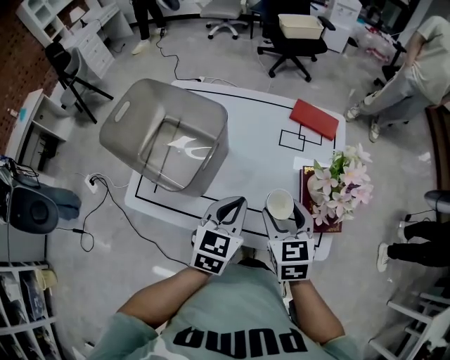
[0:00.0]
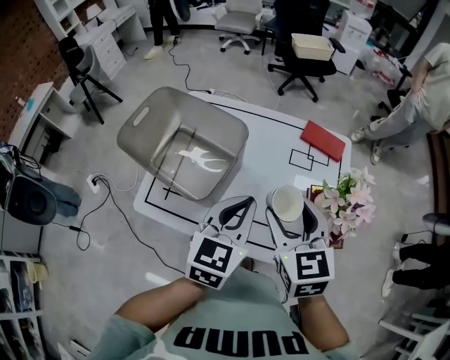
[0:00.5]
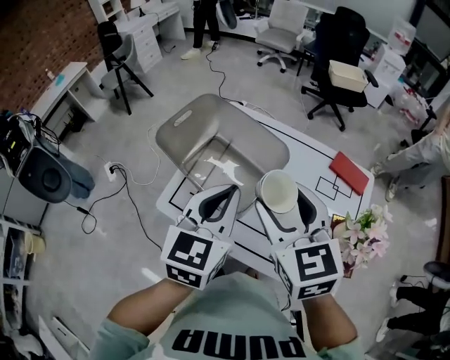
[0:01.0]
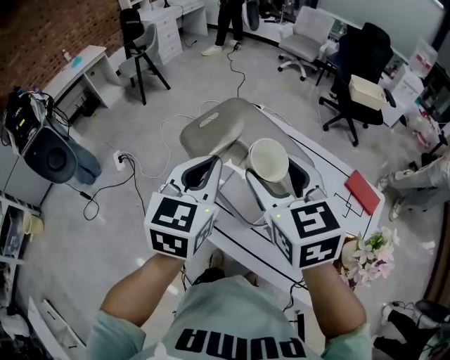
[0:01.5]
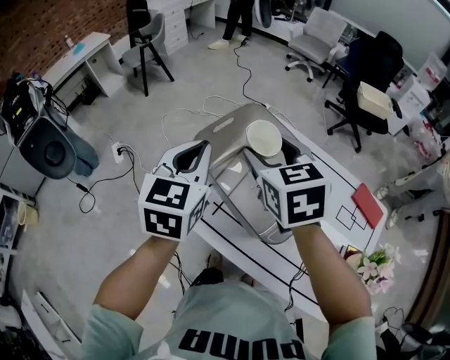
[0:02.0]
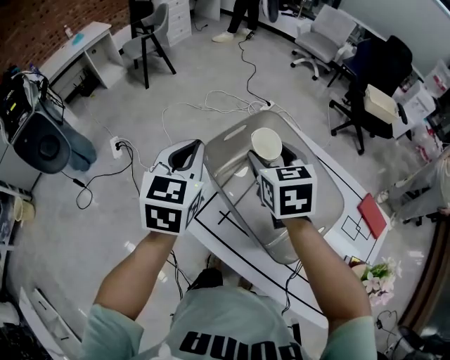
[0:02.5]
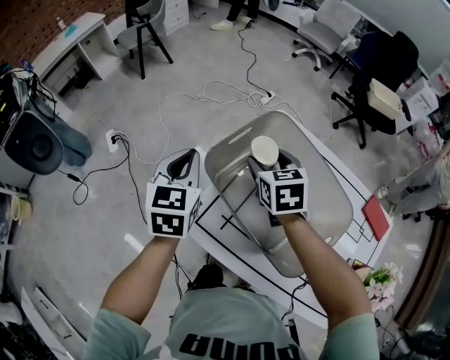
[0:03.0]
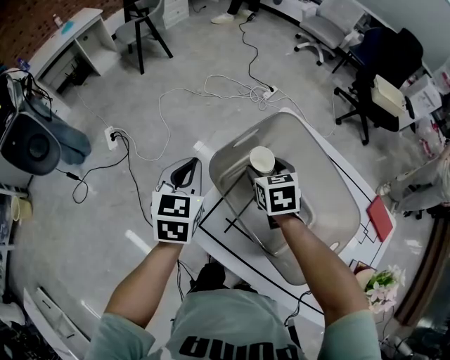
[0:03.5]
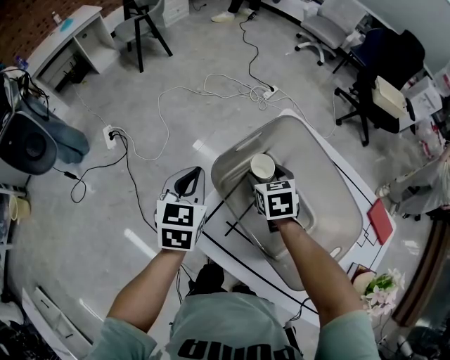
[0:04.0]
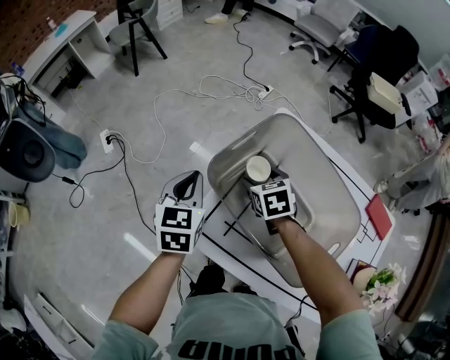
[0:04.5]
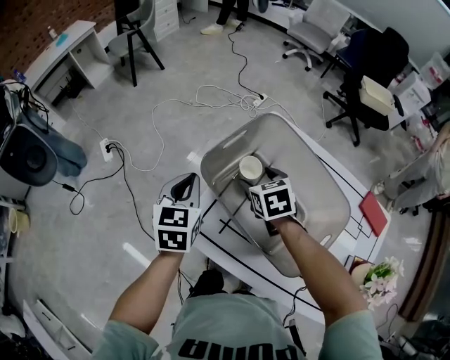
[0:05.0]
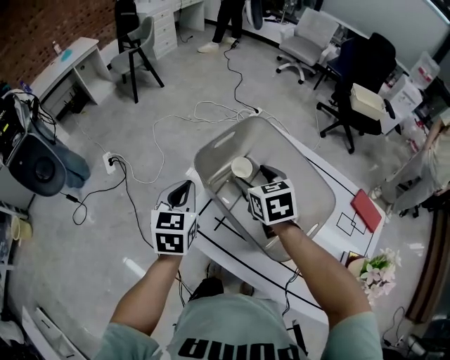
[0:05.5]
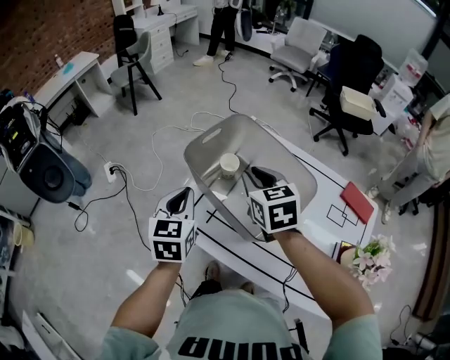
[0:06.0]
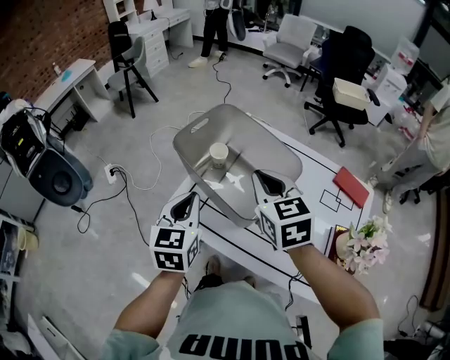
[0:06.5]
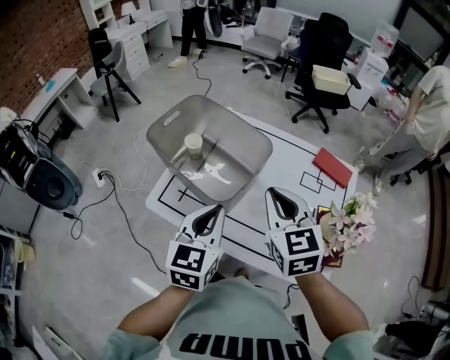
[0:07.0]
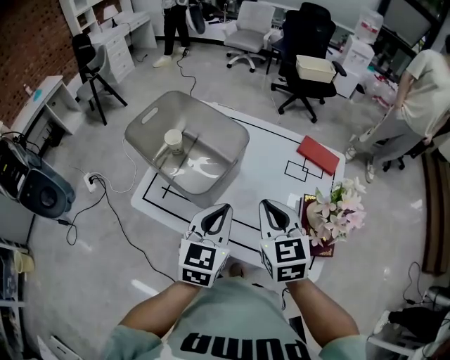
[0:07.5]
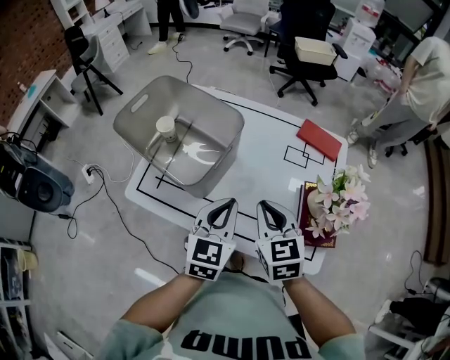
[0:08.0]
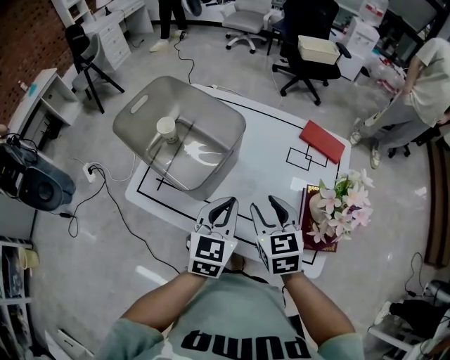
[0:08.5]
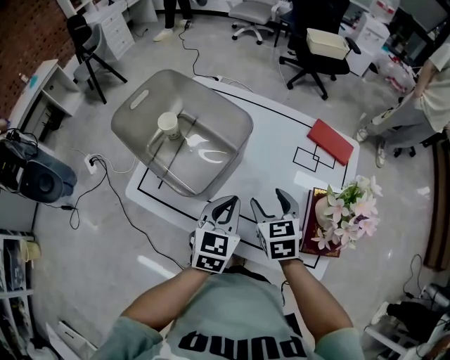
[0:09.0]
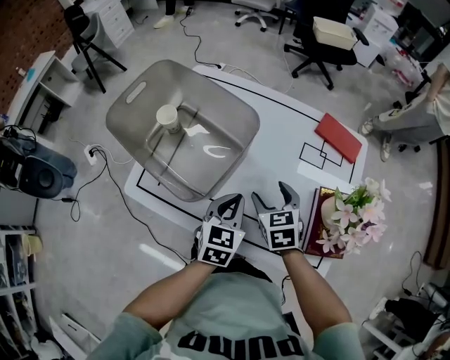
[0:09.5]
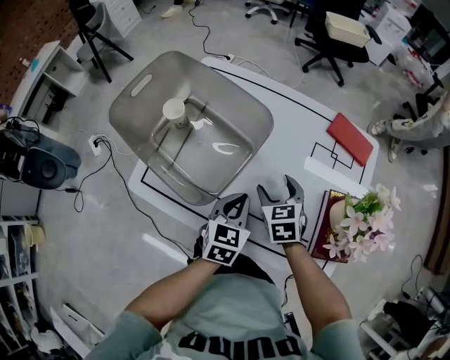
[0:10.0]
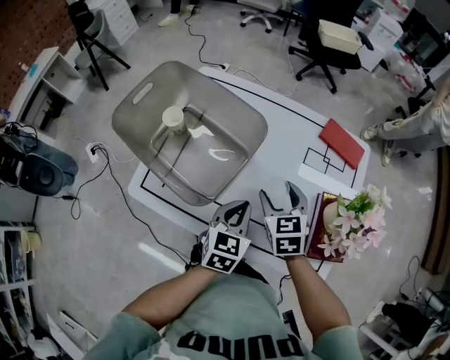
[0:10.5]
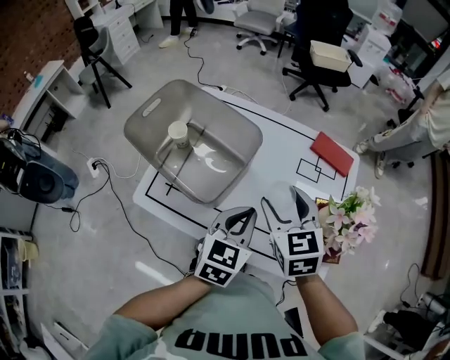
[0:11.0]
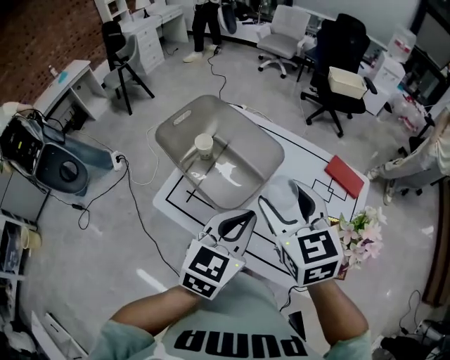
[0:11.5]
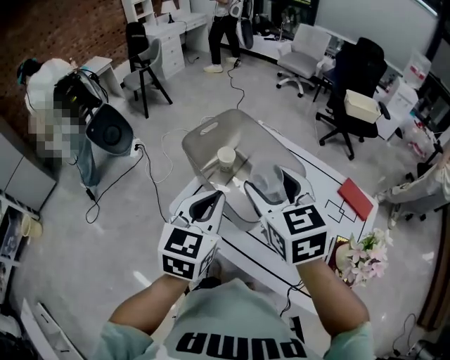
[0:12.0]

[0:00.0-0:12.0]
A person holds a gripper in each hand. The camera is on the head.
0:00.0 to 0:02.0: The right gripper changes place by about 40 cm, and rotates some 30 degrees. The left gripper shifts by some 40 cm, and swivels about 30 degrees.
0:02.0 to 0:04.0: The left gripper heads downward, forward and to the left, covering about 20 cm. The right gripper is displaced downward by approximately 25 cm, and changes its angle by about 20 degrees.
0:04.0 to 0:06.0: The right gripper moves upward and backward, about 25 cm, and closes; the left gripper travels backward and upward by approximately 15 cm.
0:06.0 to 0:08.0: The grippers both shift to the right and backward by approximately 35 cm. The left gripper rotates roughly 30 degrees.
0:08.0 to 0:10.0: Both grippers move downward and forward, approximately 15 cm. The right gripper opens up.
0:10.0 to 0:12.0: Both grippers travel together upward and to the left, about 35 cm. The right gripper rotates about 30 degrees. The left gripper changes its angle by roughly 20 degrees.

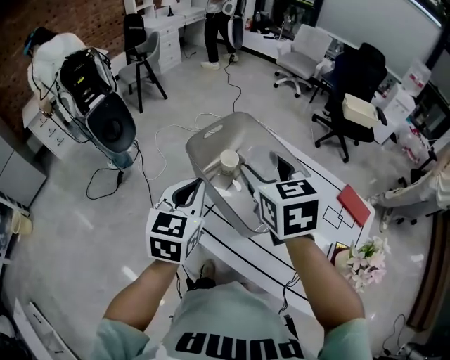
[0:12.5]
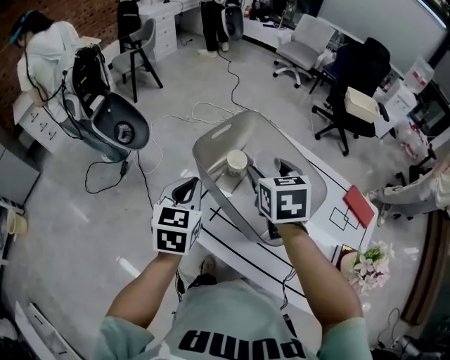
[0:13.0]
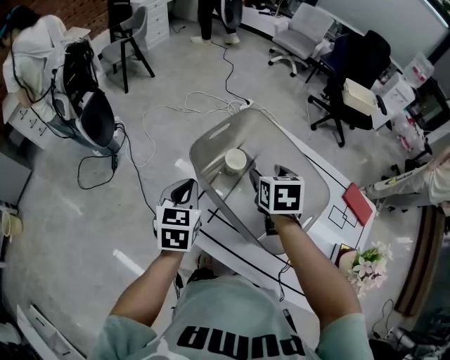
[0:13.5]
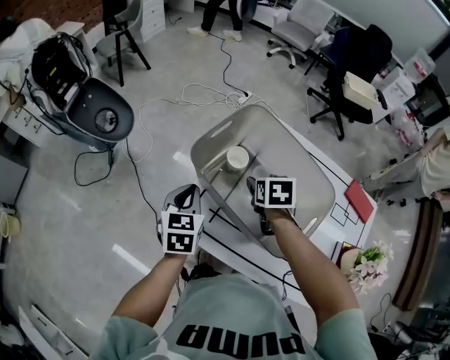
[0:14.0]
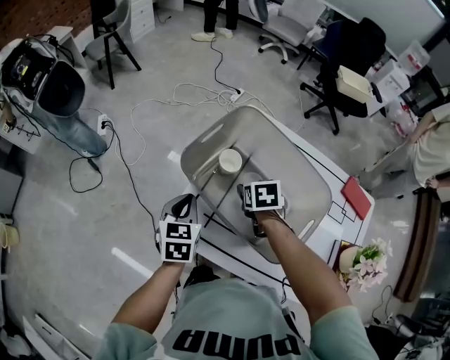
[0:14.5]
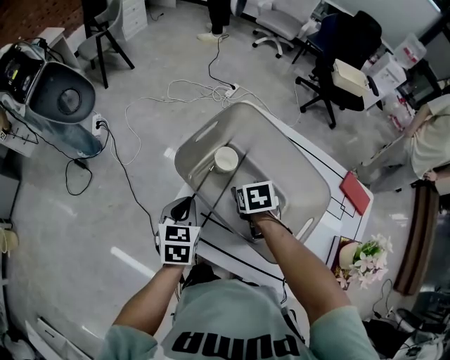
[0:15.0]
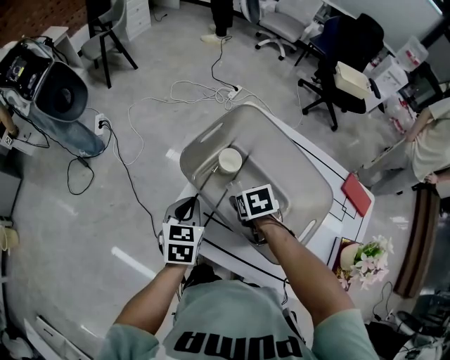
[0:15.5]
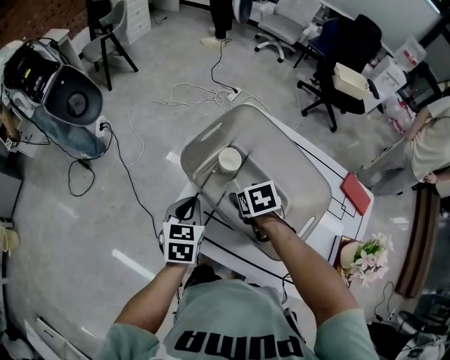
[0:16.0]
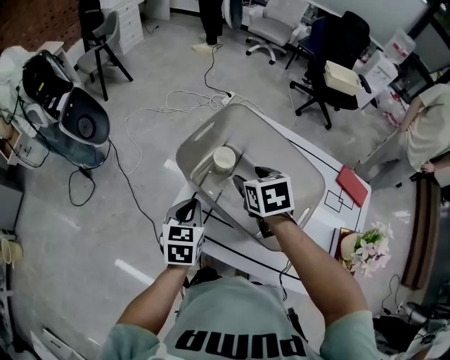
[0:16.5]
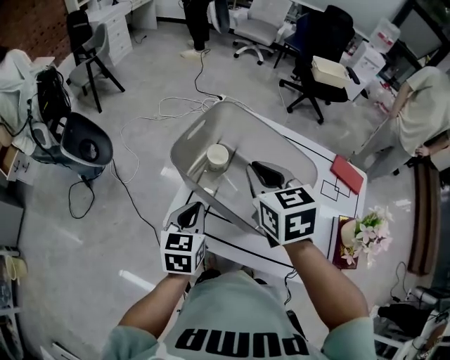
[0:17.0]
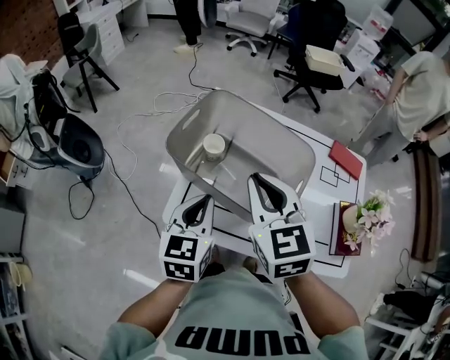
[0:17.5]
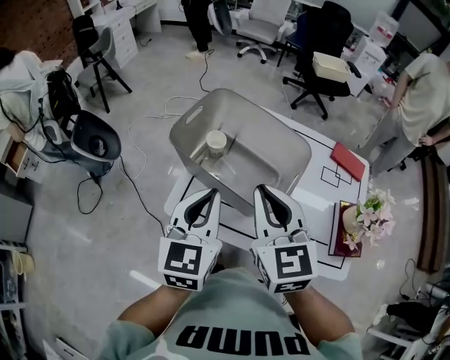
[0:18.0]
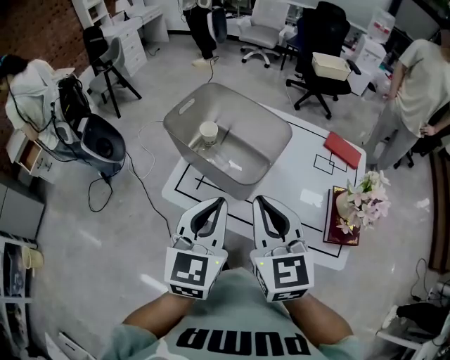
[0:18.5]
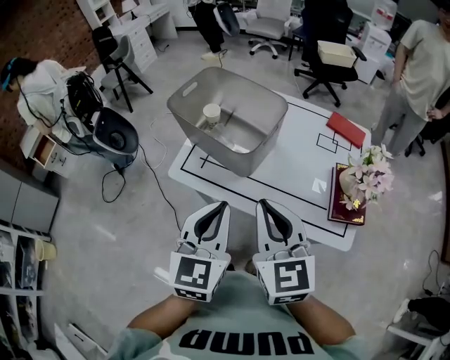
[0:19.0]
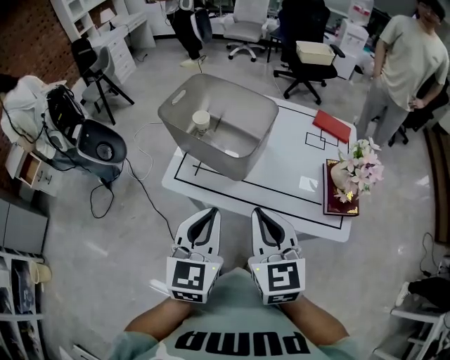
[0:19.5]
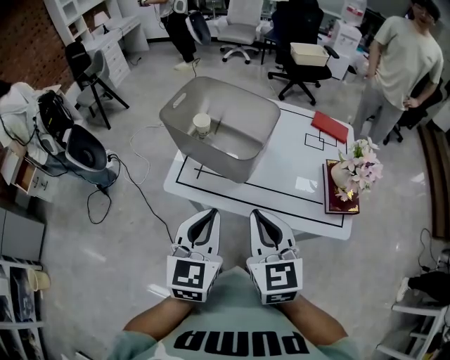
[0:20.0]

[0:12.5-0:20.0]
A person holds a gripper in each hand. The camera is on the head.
0:12.5 to 0:14.5: The right gripper moves downward, about 30 cm, and points its fingers roughly 40 degrees further downward, while the left gripper moves downward and forward, some 20 cm.
0:14.5 to 0:16.5: The right gripper moves upward, about 10 cm.
0:16.5 to 0:18.0: The right gripper is displaced backward and upward by roughly 25 cm, angles its fingers upward, by approximately 40 degrees, and closes. The left gripper heads upward, backward and to the right, covering about 20 cm, and rotates approximately 20 degrees.
0:18.0 to 0:20.0: The grippers both shift backward by some 20 cm.

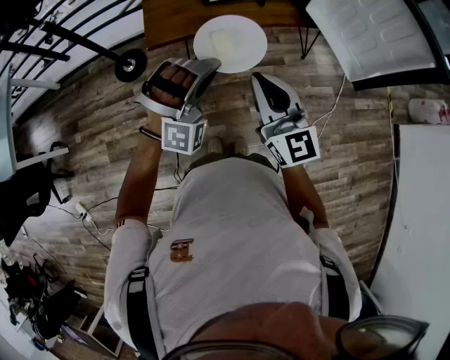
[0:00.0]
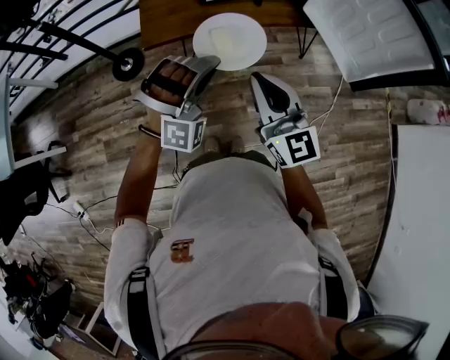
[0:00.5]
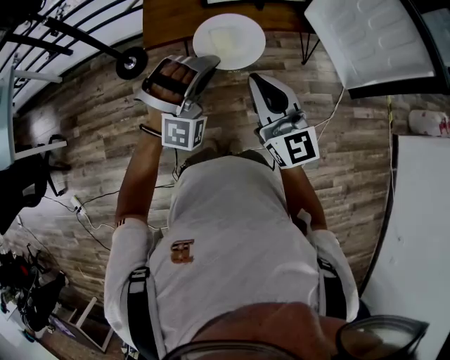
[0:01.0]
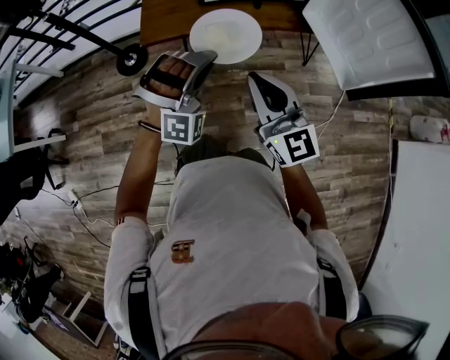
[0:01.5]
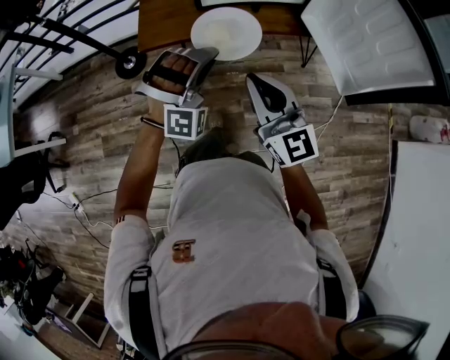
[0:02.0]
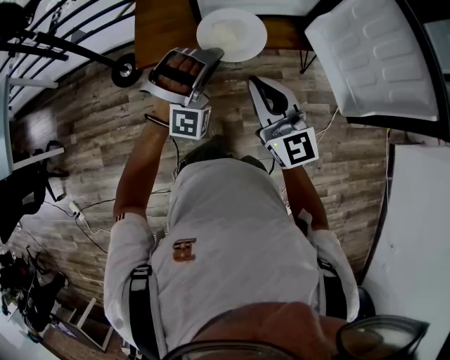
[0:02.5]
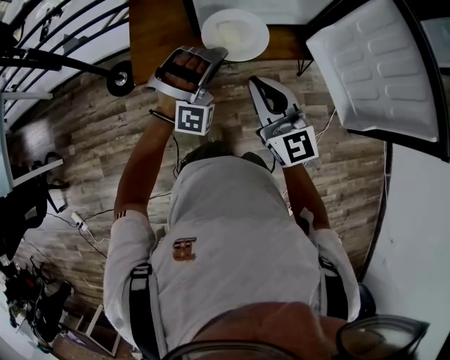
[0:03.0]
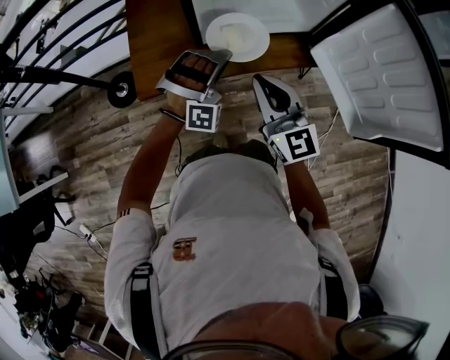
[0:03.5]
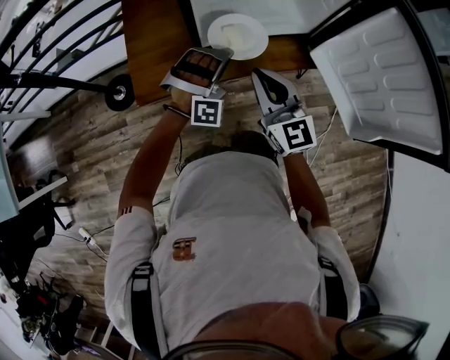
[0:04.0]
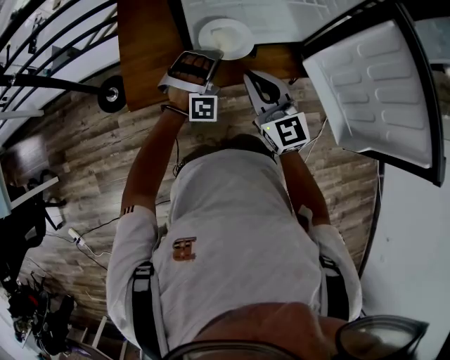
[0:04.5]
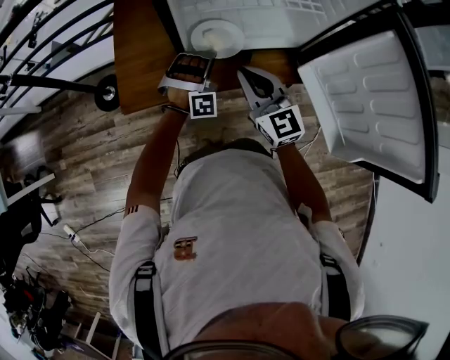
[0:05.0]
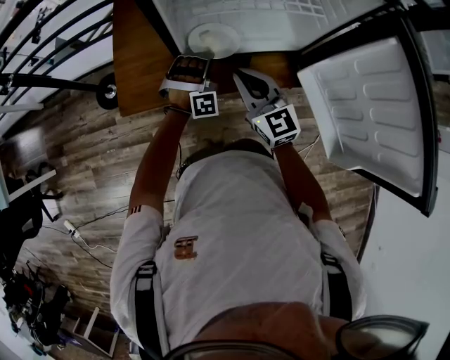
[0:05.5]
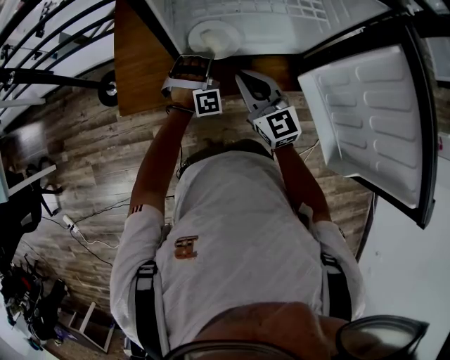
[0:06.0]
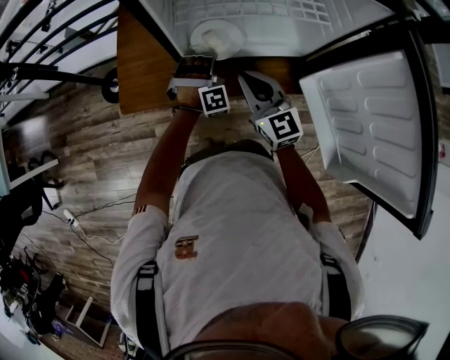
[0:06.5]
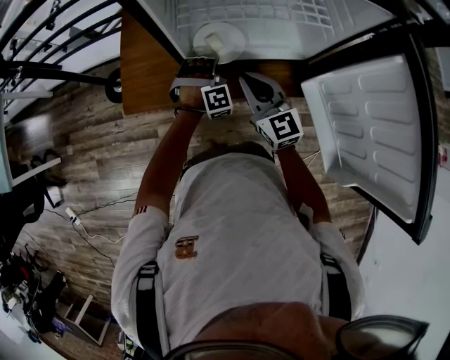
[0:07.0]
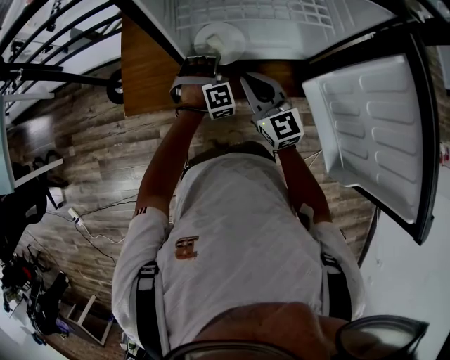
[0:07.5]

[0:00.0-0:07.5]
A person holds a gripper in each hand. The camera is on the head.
0:00.0 to 0:02.0: The right gripper shifts by roughly 10 cm.
0:02.0 to 0:04.0: The right gripper changes place by some 25 cm.
0:04.0 to 0:05.5: The right gripper moves roughly 10 cm.
